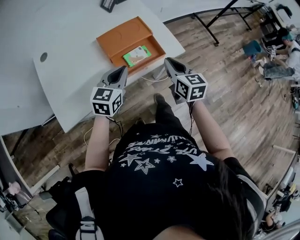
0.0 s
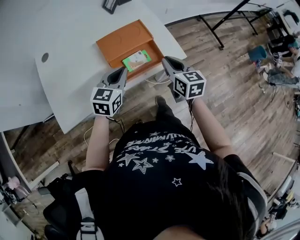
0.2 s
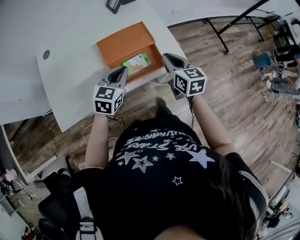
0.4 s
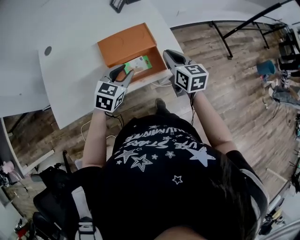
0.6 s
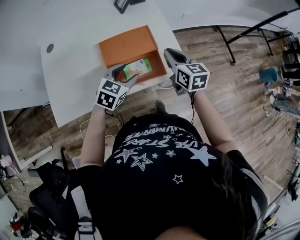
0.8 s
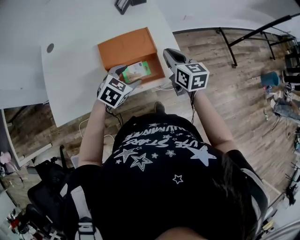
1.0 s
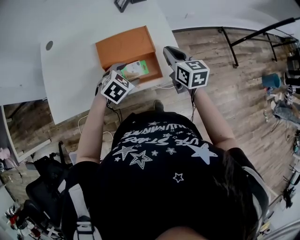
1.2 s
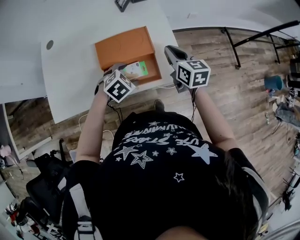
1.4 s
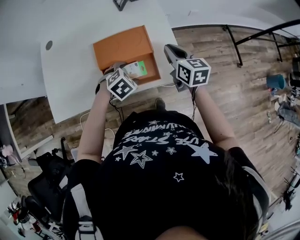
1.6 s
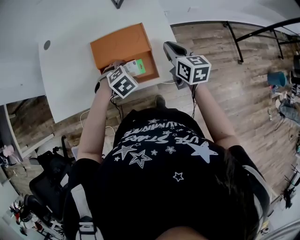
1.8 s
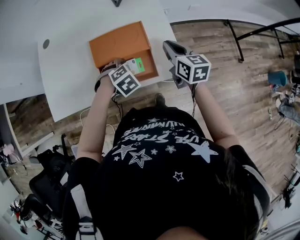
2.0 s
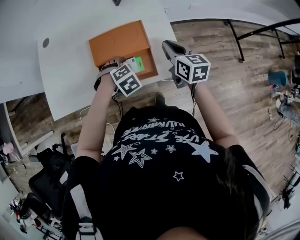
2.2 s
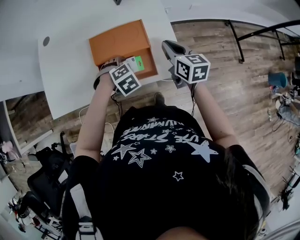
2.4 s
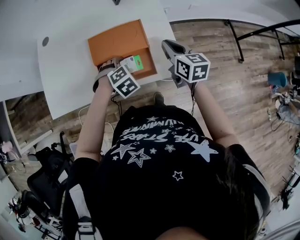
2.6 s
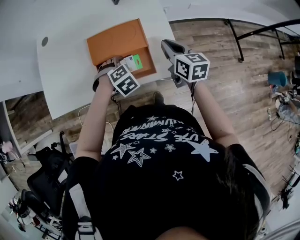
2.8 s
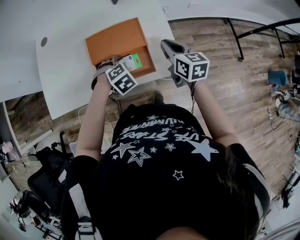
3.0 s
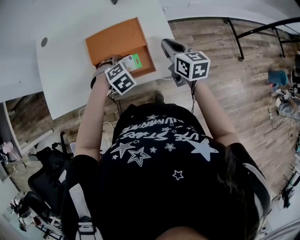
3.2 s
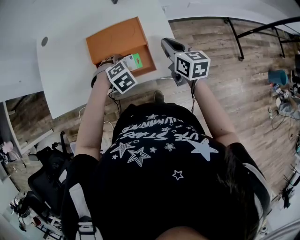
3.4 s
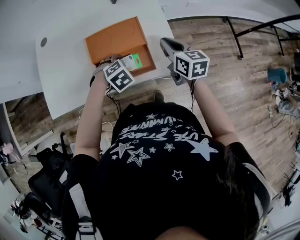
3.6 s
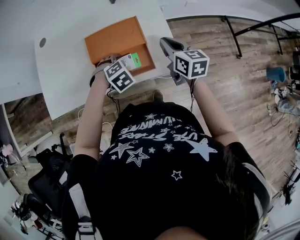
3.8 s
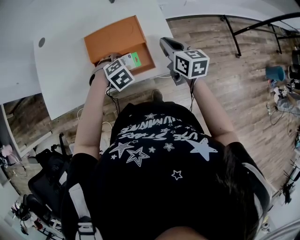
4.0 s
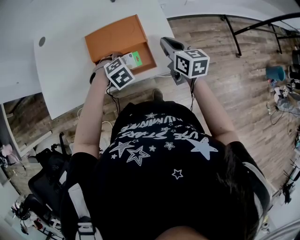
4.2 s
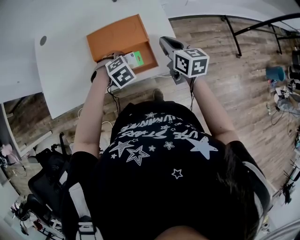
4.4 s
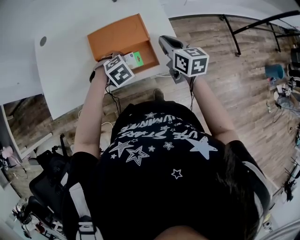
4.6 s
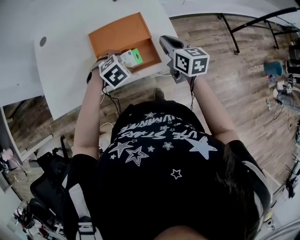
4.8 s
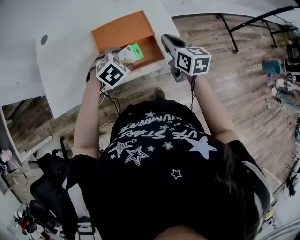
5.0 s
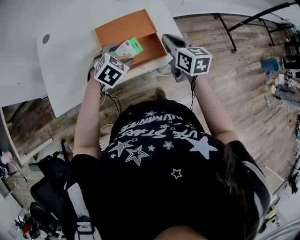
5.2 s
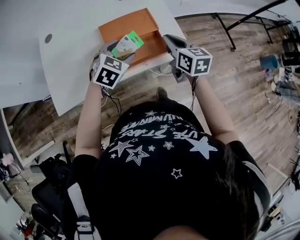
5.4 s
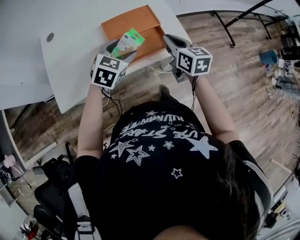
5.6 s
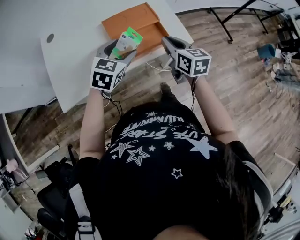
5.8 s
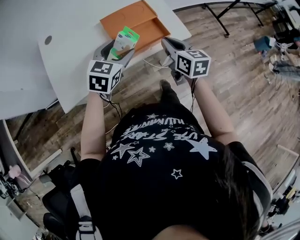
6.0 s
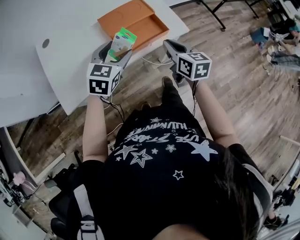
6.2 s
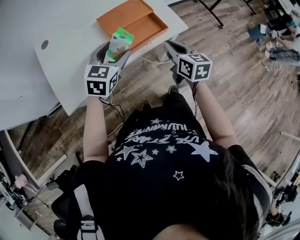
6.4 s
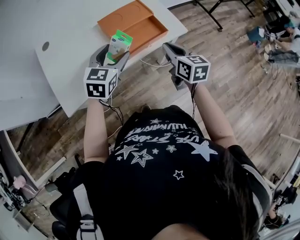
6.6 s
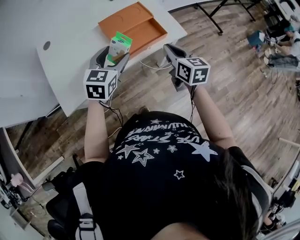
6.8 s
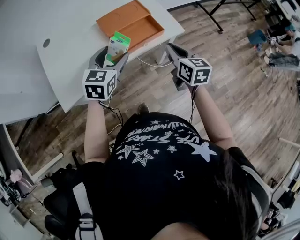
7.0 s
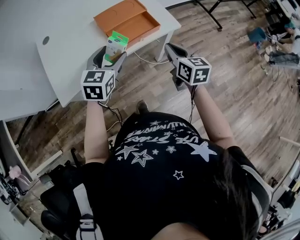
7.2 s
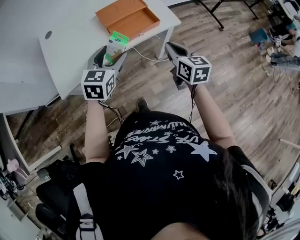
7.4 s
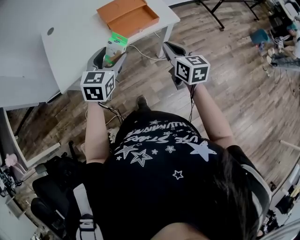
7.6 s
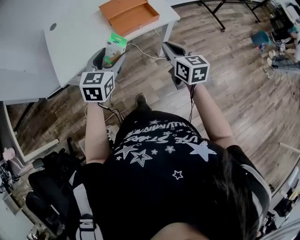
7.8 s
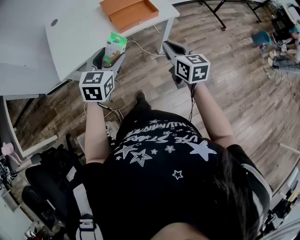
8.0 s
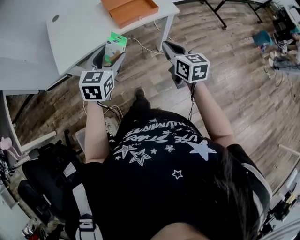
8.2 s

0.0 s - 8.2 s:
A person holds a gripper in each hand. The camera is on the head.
0.0 s - 1.6 s: The left gripper shifts approximately 20 cm downward, forward and to the right, tips its fingers downward by roughly 50 degrees, and opens its fingers, while the right gripper shifts about 20 cm forward.
1.6 s - 3.2 s: The grippers move only a little.
3.2 s - 5.0 s: The left gripper changes place by some 5 cm, while the right gripper changes place by some 5 cm.
5.0 s - 6.6 s: The left gripper heads backward, upward and to the left, covering some 20 cm, and tilts its fingers some 40 degrees upward, while the right gripper heads backward, covering roughly 20 cm.
6.6 s - 8.2 s: The two grippers go some 25 cm backward.

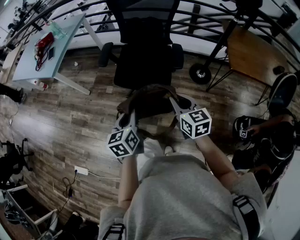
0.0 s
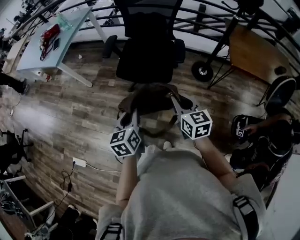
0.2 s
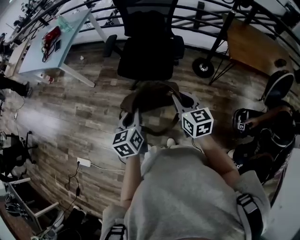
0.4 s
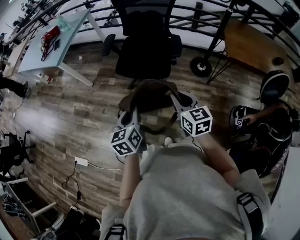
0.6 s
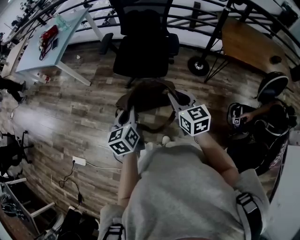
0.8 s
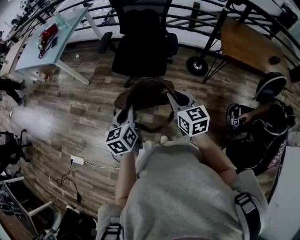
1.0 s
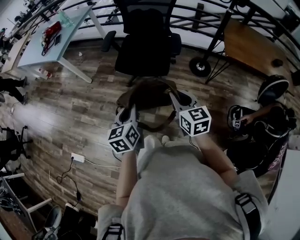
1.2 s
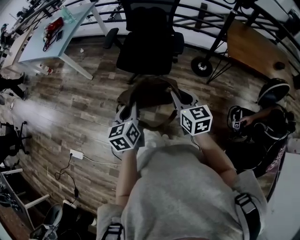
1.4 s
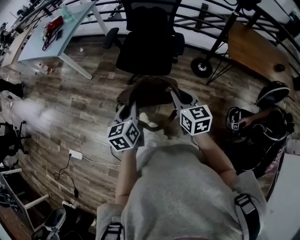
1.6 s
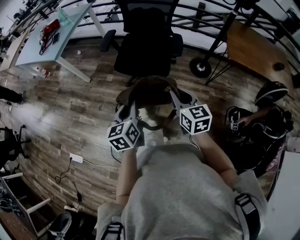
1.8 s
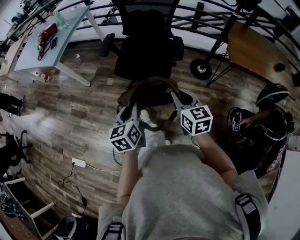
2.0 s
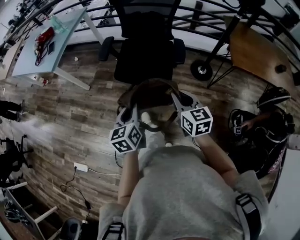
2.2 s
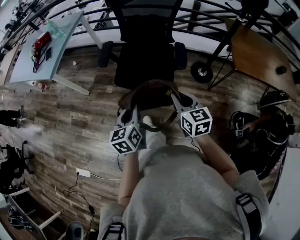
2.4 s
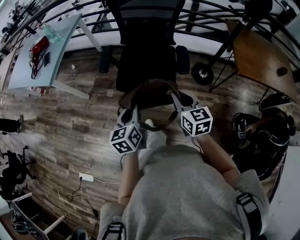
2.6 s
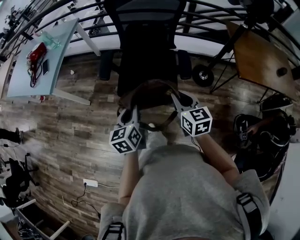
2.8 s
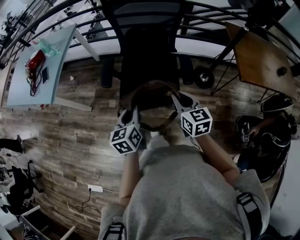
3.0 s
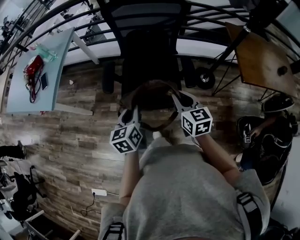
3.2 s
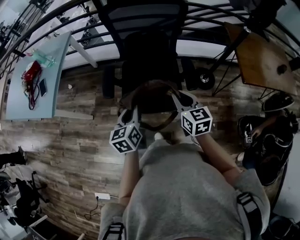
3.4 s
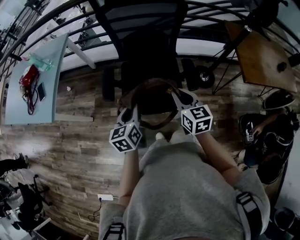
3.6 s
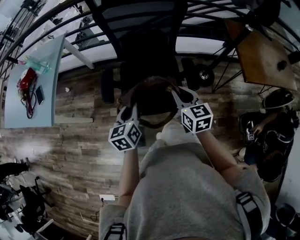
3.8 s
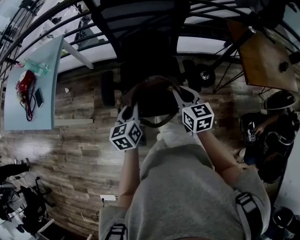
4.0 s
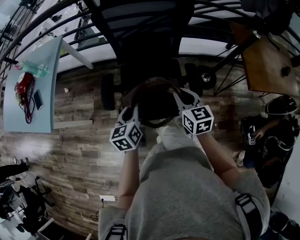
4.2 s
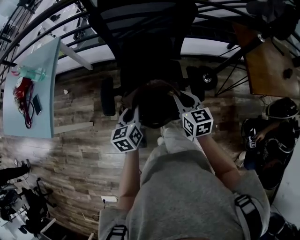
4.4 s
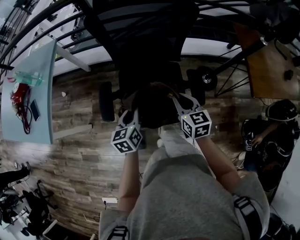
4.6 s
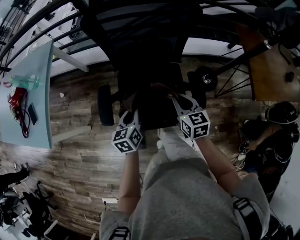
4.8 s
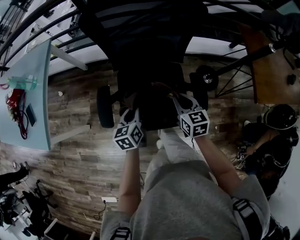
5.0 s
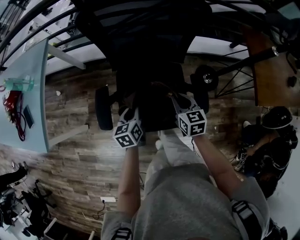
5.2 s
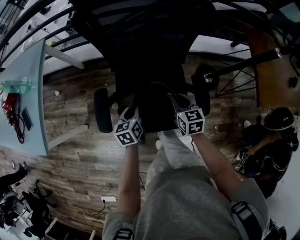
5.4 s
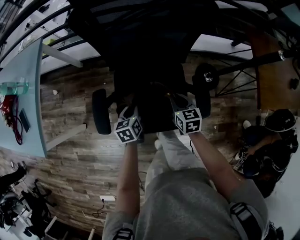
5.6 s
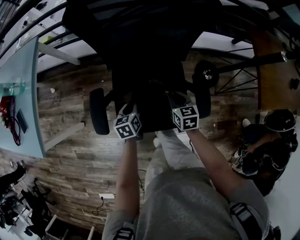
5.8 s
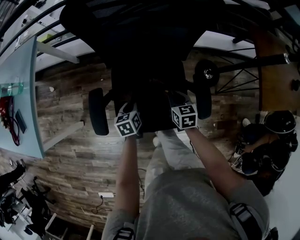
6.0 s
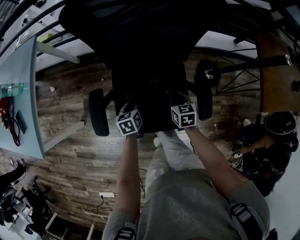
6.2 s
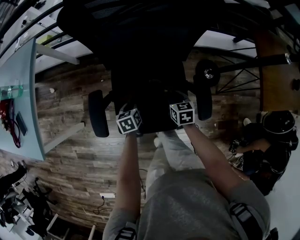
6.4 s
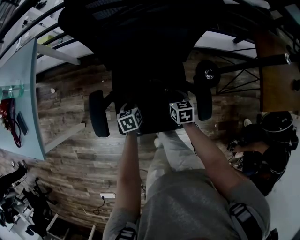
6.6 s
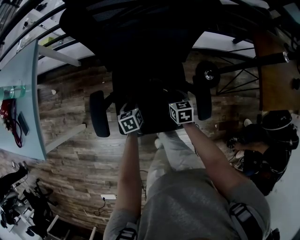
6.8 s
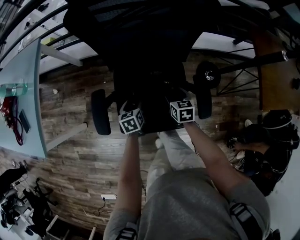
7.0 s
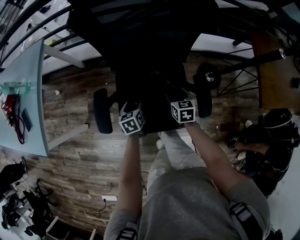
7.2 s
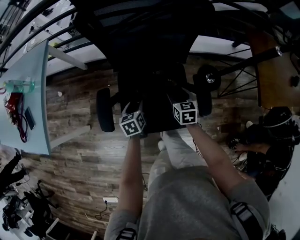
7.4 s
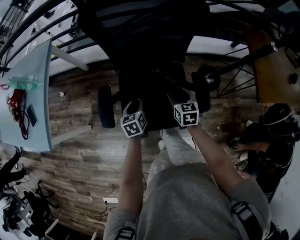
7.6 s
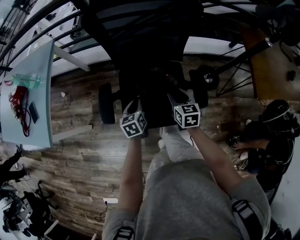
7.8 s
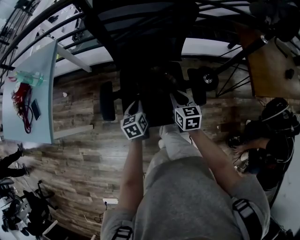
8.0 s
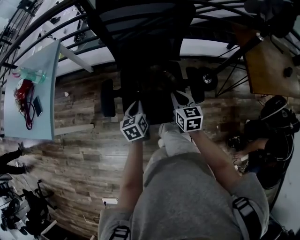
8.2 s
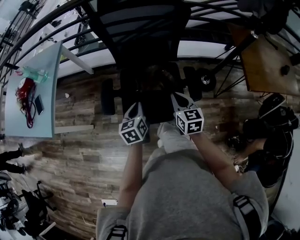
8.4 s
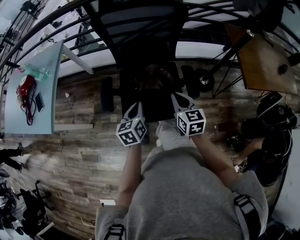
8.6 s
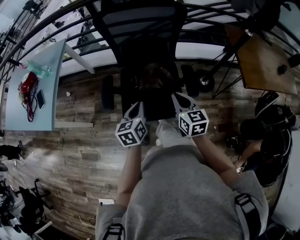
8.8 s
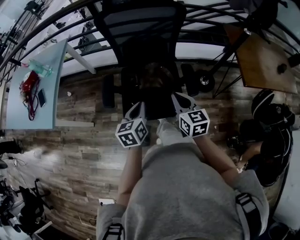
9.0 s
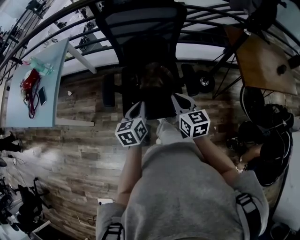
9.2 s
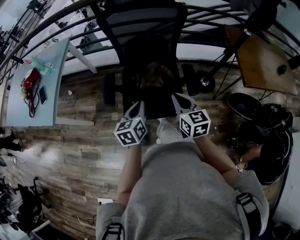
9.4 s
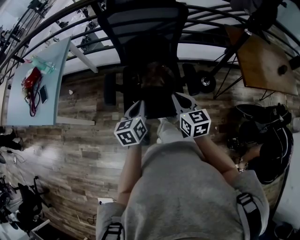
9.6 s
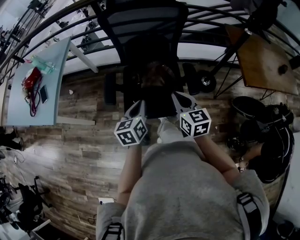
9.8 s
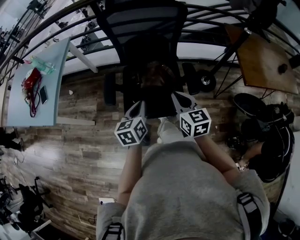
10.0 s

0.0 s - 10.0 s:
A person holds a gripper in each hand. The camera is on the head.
0.0 s - 1.4 s: Both grippers move backward, roughly 10 cm.
1.4 s - 2.8 s: The two grippers go about 25 cm forward.
2.8 s - 4.2 s: Both grippers move forward, approximately 20 cm.
4.2 s - 5.8 s: Both grippers move downward and forward, roughly 25 cm.
5.8 s - 7.2 s: The left gripper opens up. The right gripper opens.
7.2 s - 8.6 s: The two grippers go approximately 25 cm upward and backward. The left gripper closes its fingers, while the right gripper changes its angle by approximately 20 degrees, and closes up.
8.6 s - 10.0 s: The left gripper moves roughly 5 cm. Meanwhile the right gripper shifts by about 5 cm.

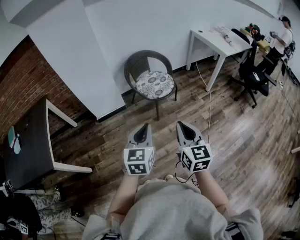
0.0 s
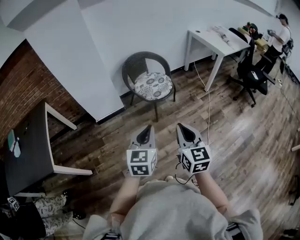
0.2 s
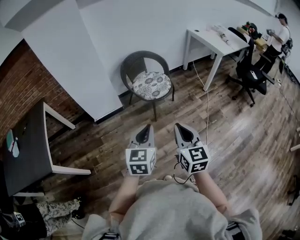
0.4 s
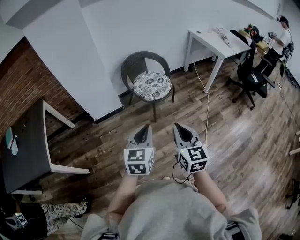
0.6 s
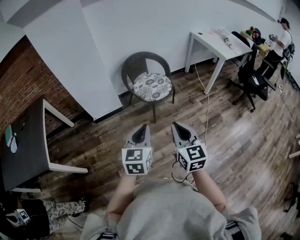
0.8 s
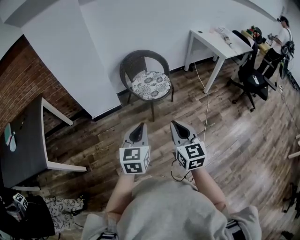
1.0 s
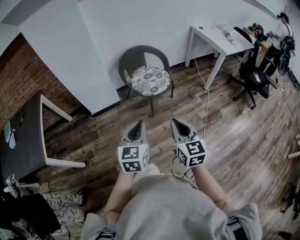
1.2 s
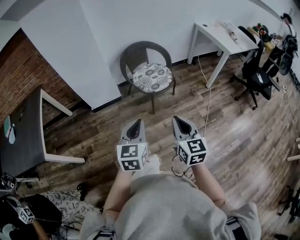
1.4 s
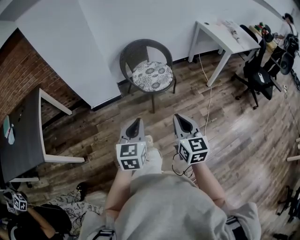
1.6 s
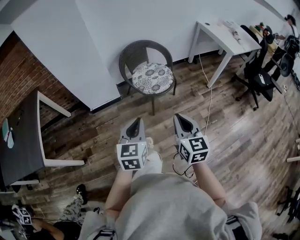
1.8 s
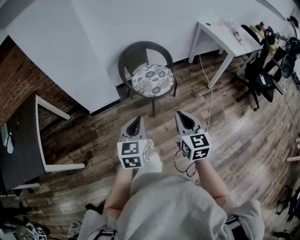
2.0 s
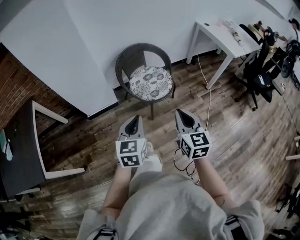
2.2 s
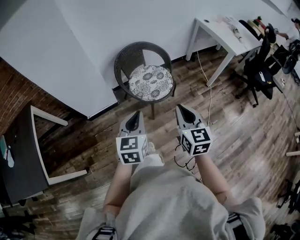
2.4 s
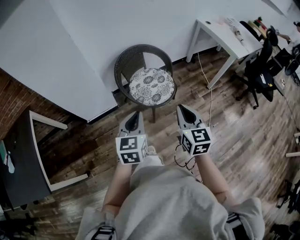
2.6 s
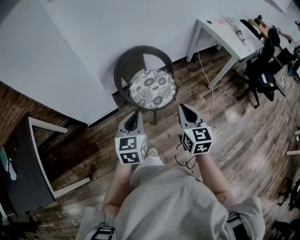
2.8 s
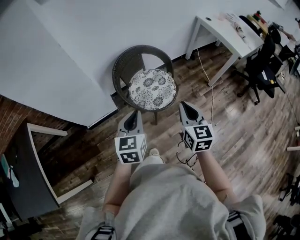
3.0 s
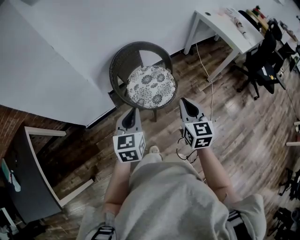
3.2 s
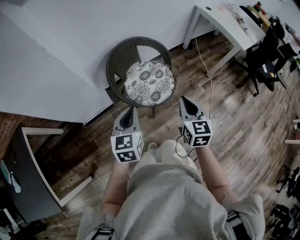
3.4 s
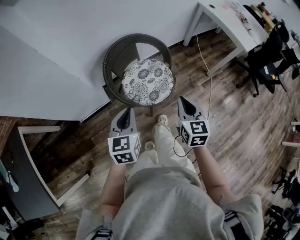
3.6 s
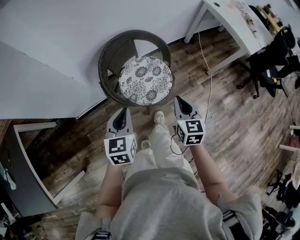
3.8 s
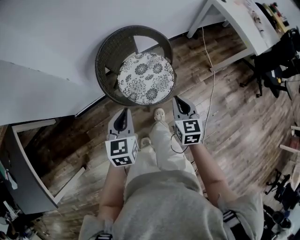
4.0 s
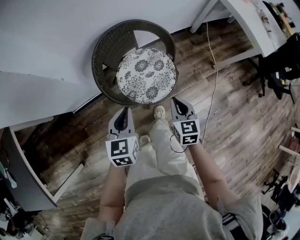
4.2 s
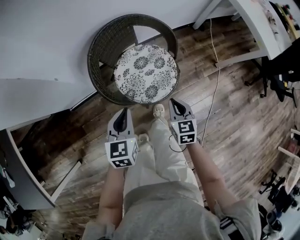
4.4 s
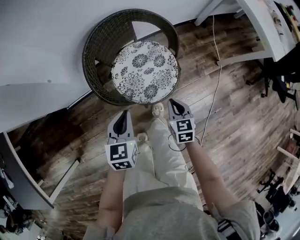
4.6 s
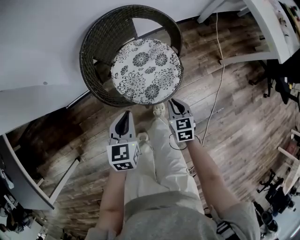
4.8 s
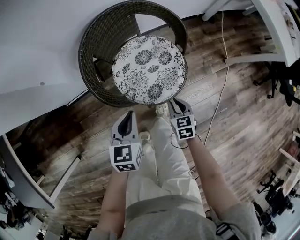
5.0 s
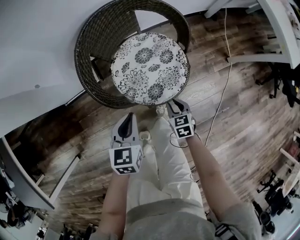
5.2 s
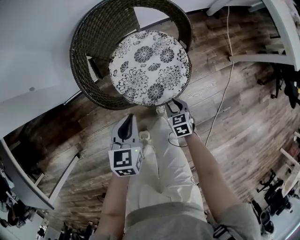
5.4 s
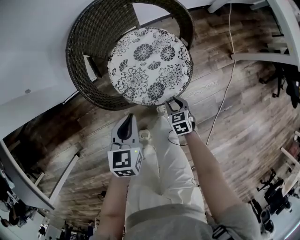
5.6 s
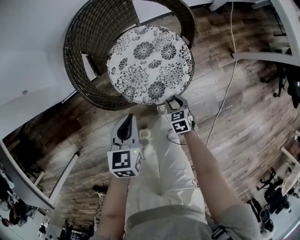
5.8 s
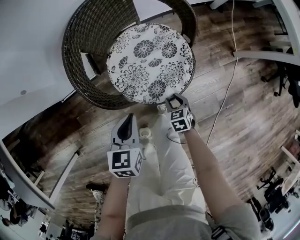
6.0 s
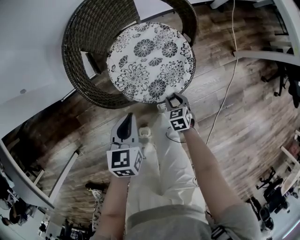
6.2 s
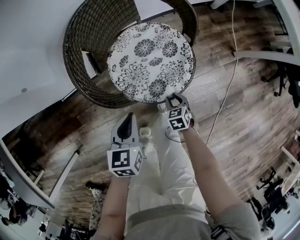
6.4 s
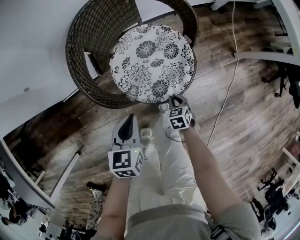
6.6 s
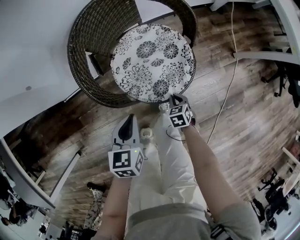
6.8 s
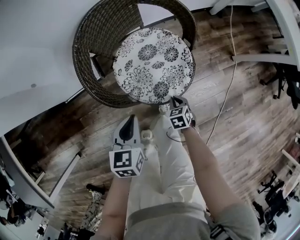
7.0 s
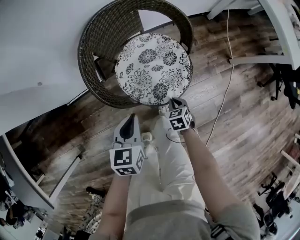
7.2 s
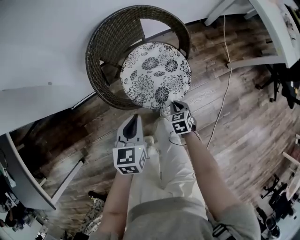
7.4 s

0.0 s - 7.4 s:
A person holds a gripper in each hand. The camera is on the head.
0.0 s - 1.4 s: The left gripper moves about 5 cm, while the right gripper shifts some 5 cm forward.
1.4 s - 3.0 s: Both grippers travel together forward, approximately 35 cm.
3.0 s - 4.4 s: The grippers both shift downward and forward by roughly 30 cm. The right gripper changes its angle by roughly 20 degrees.
4.4 s - 6.0 s: The right gripper heads downward, covering approximately 30 cm, changes its angle by approximately 30 degrees, and opens its fingers; the left gripper travels downward by approximately 15 cm.
6.0 s - 7.4 s: The grippers both shift upward by some 10 cm. The right gripper closes up.
